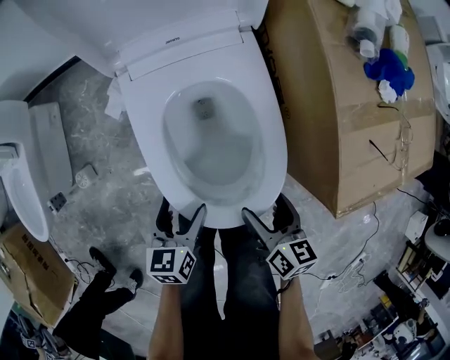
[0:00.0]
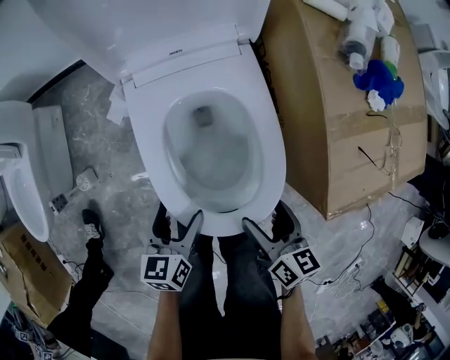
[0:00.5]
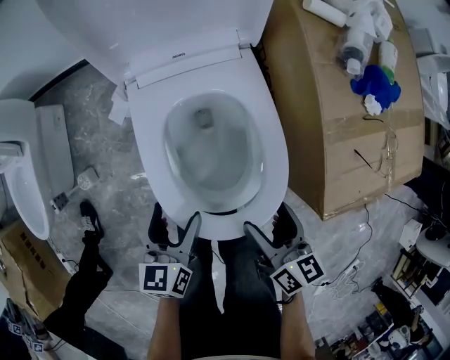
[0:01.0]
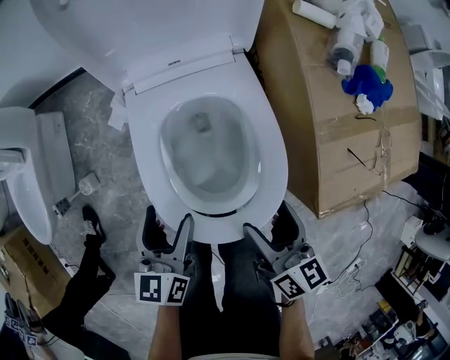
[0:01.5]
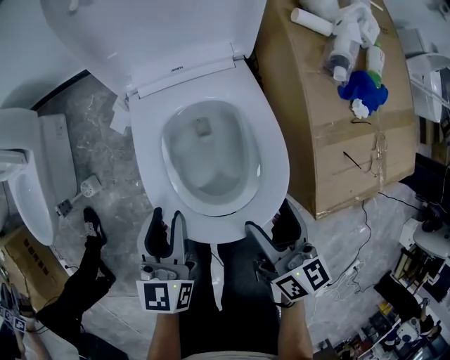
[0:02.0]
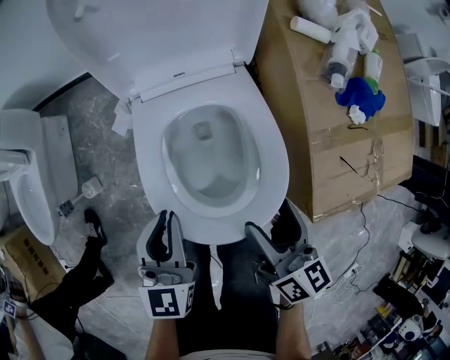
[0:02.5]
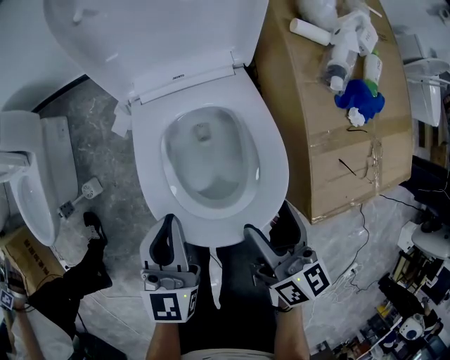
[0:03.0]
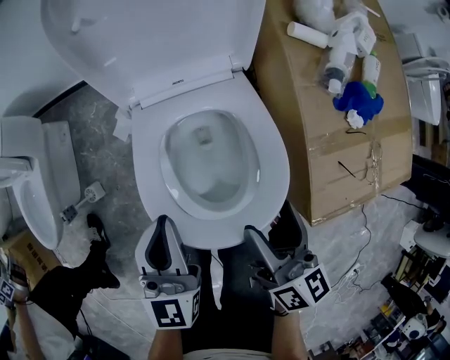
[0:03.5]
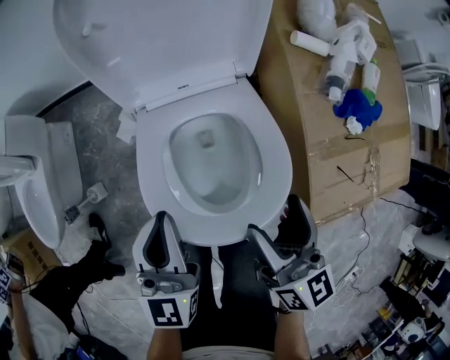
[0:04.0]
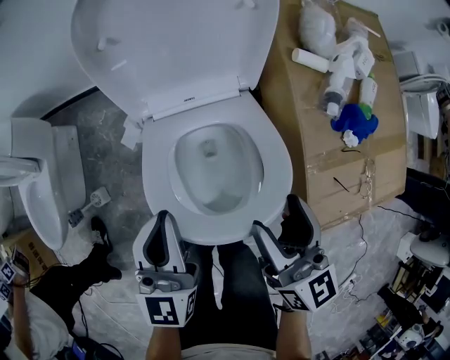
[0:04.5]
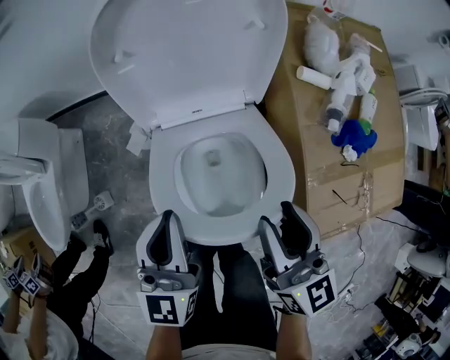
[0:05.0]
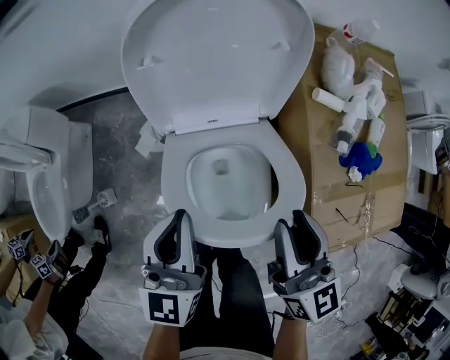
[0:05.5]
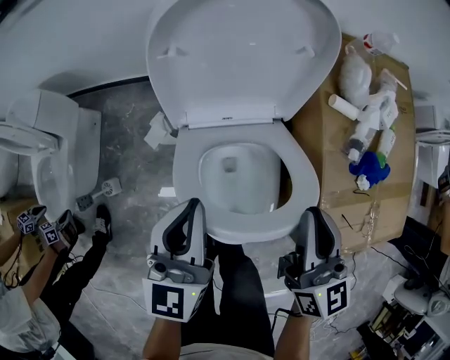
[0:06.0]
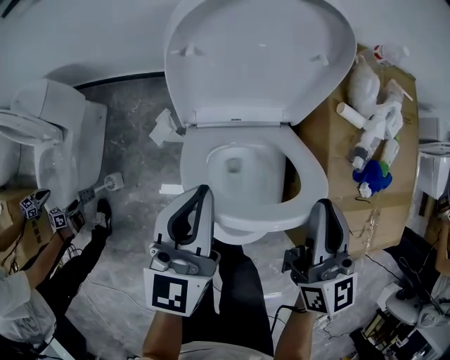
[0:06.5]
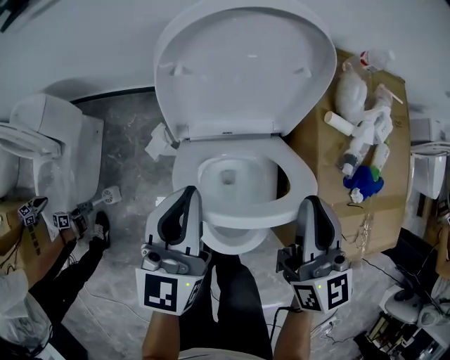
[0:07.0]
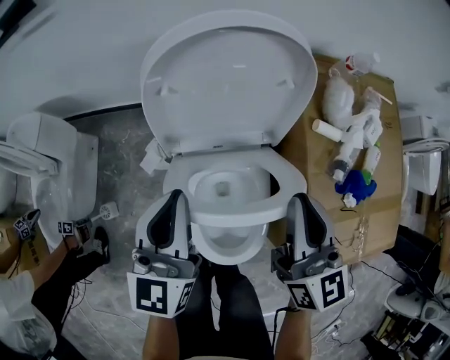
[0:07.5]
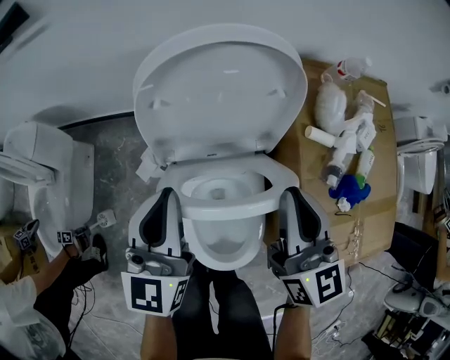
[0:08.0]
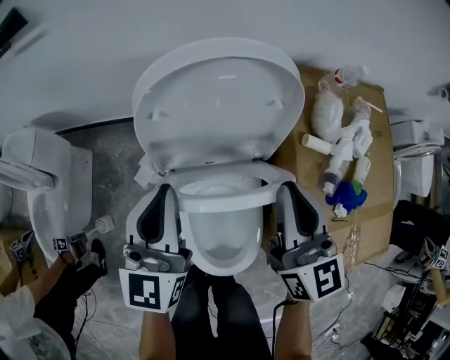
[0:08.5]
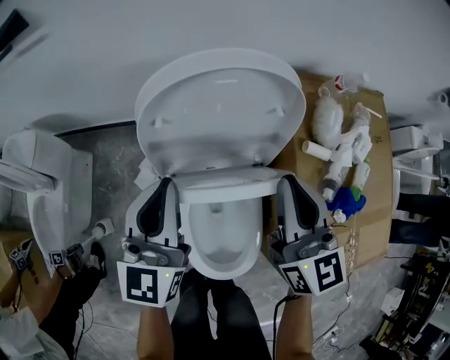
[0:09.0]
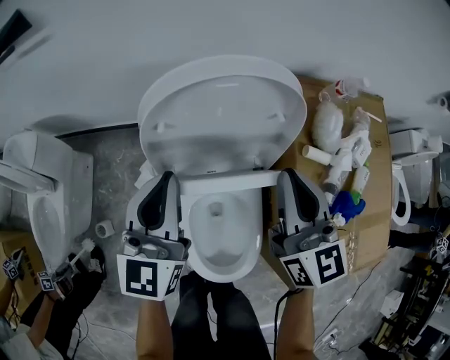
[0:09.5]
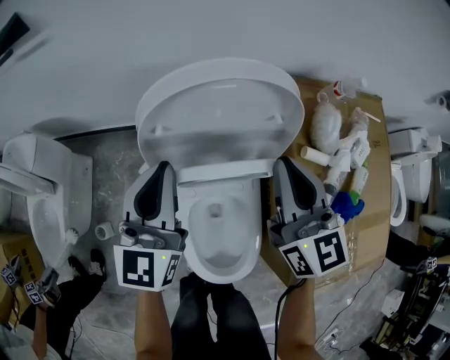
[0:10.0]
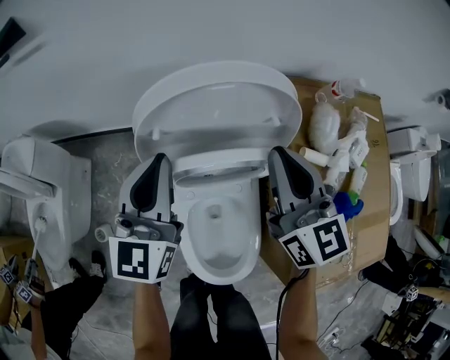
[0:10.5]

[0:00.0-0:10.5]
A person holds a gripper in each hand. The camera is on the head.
0.0 to 2.0 s: Both grippers travel together upward, approximately 15 cm. The left gripper turns by roughly 20 degrees, and closes up.
2.0 to 4.0 s: The grippers both shift upward and forward by about 10 cm. The left gripper closes its fingers.
4.0 to 6.5 s: The two grippers go some 15 cm forward and upward. The right gripper closes up.
6.5 to 8.5 s: The grippers both shift forward by roughly 10 cm.
8.5 to 10.5 s: The two grippers go about 10 cm forward.

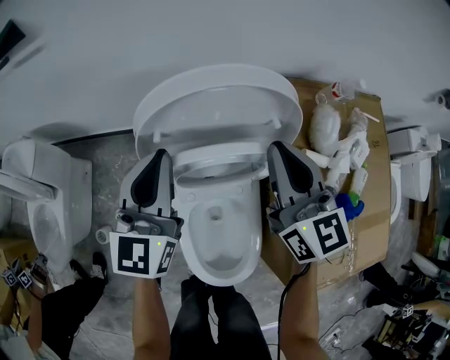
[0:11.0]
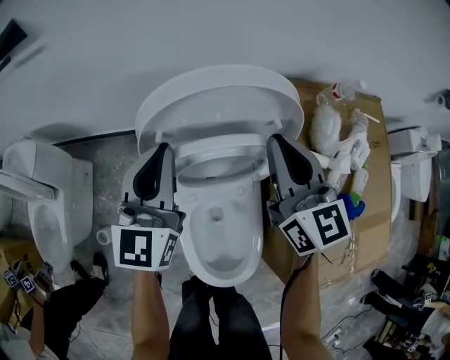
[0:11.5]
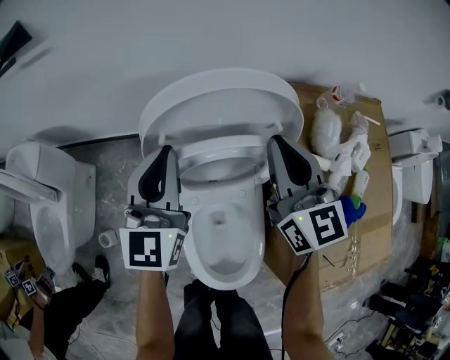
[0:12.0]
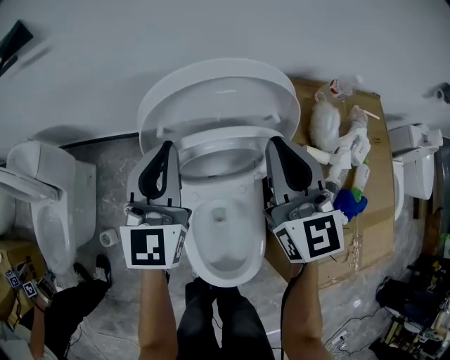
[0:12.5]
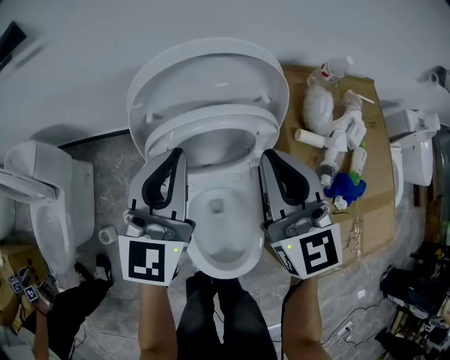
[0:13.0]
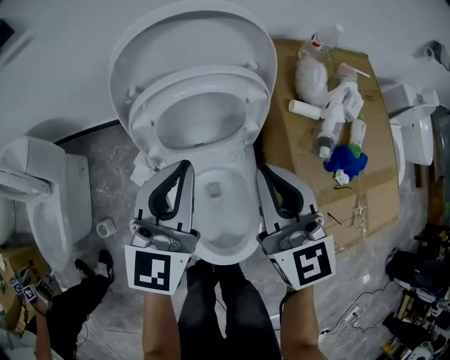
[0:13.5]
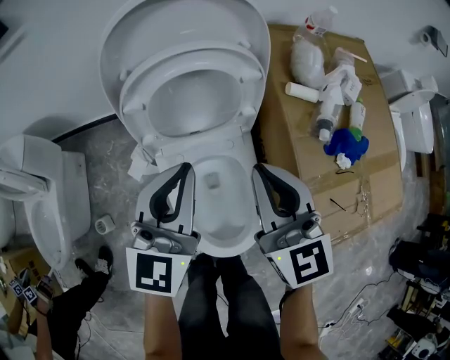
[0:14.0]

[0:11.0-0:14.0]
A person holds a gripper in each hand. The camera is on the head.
11.0 to 12.5 s: The grippers make only small movements.
12.5 to 14.0 s: The right gripper goes approximately 15 cm backward. Meanwhile the left gripper goes about 20 cm backward and to the right.

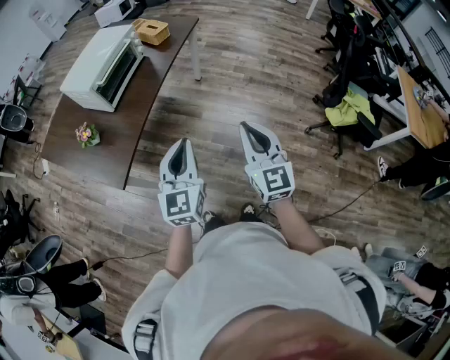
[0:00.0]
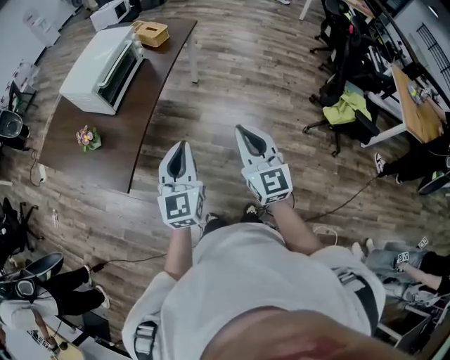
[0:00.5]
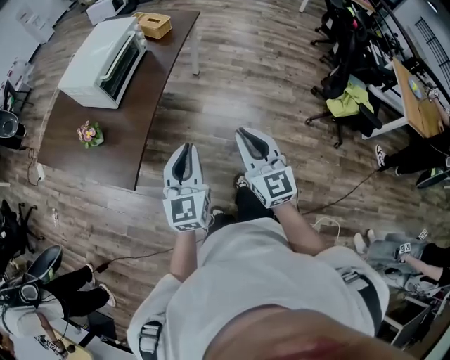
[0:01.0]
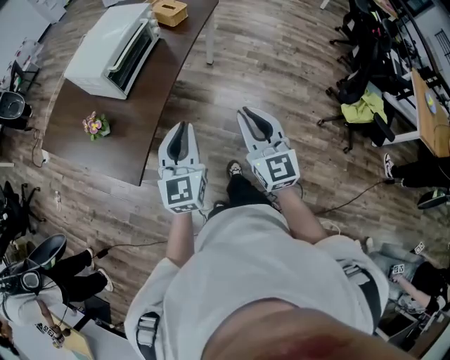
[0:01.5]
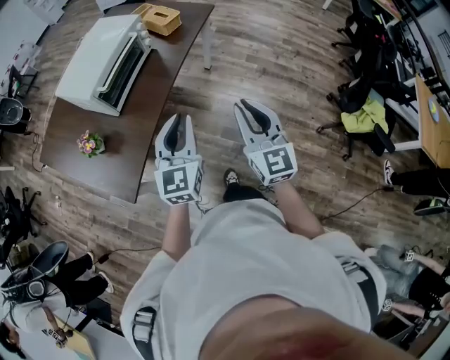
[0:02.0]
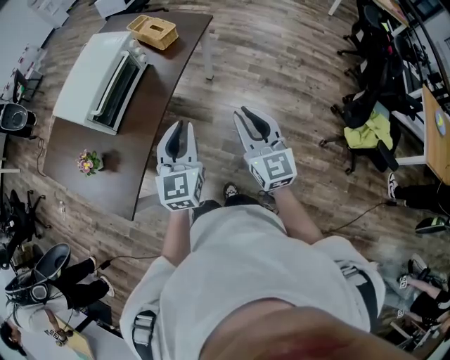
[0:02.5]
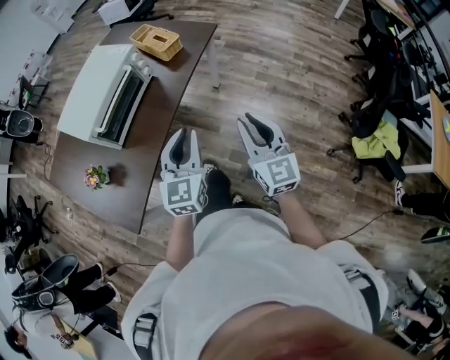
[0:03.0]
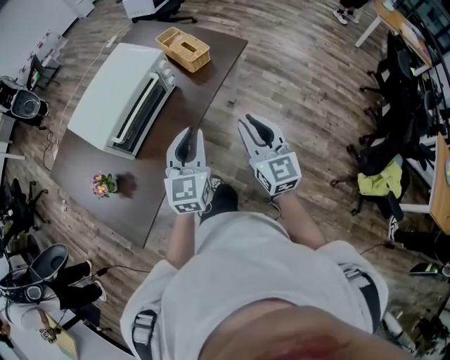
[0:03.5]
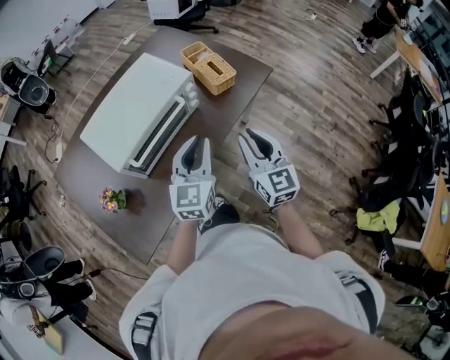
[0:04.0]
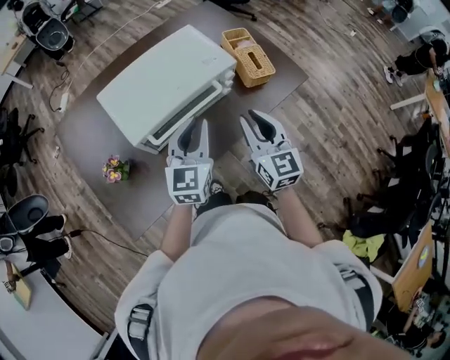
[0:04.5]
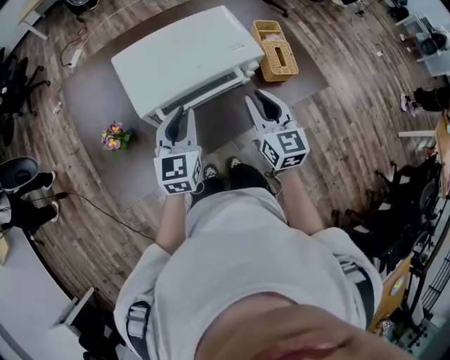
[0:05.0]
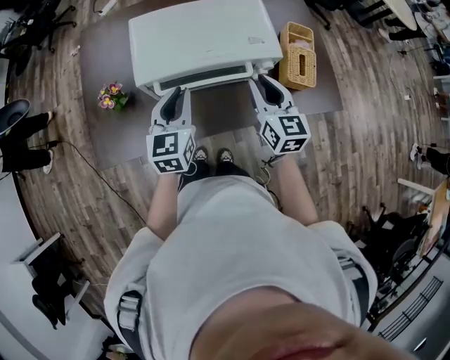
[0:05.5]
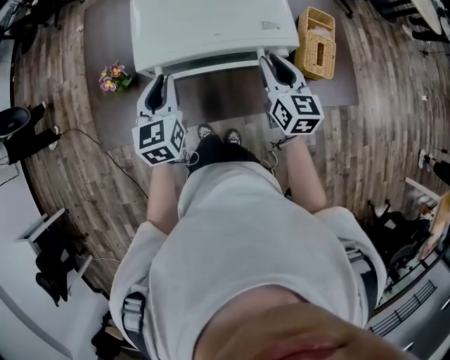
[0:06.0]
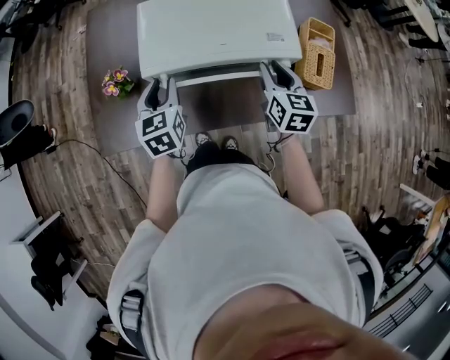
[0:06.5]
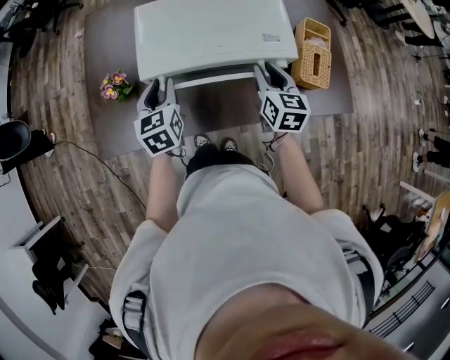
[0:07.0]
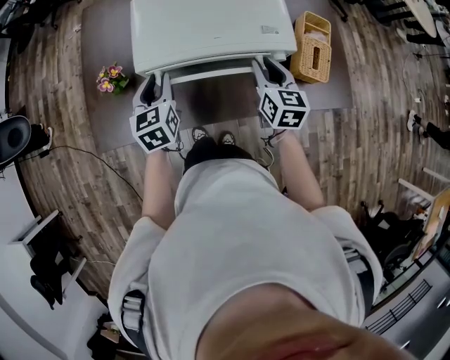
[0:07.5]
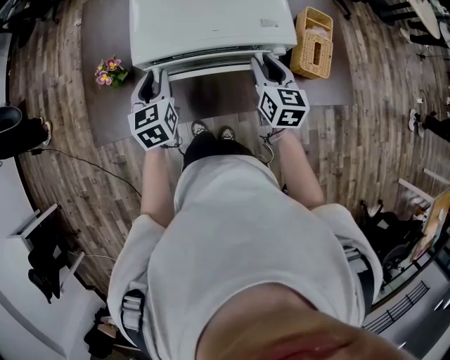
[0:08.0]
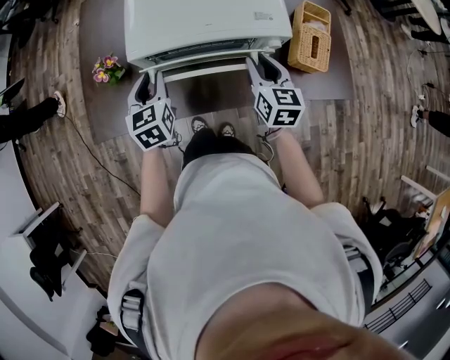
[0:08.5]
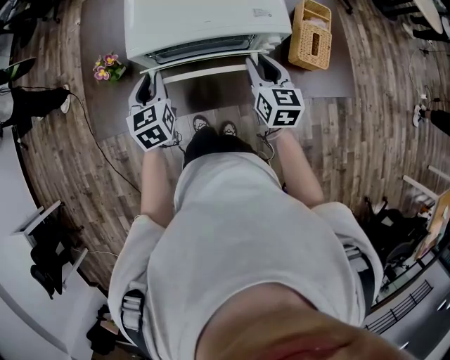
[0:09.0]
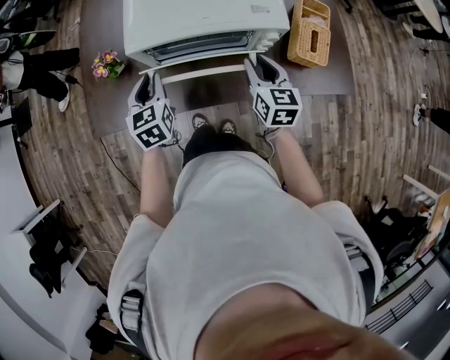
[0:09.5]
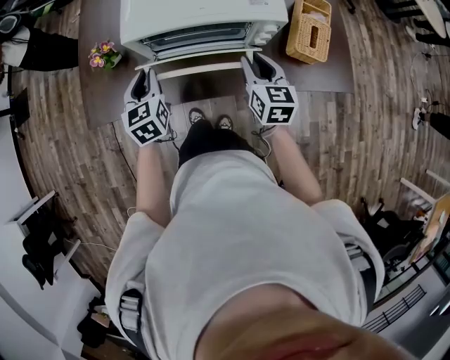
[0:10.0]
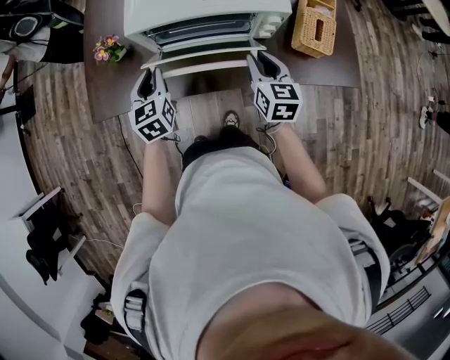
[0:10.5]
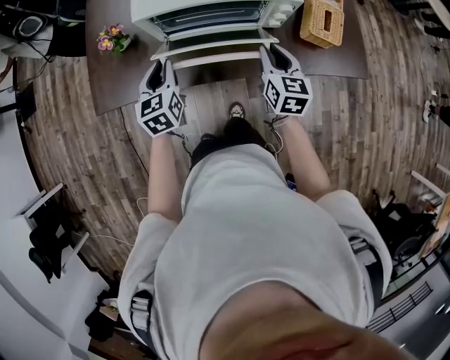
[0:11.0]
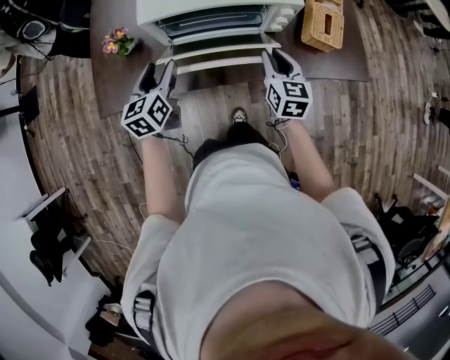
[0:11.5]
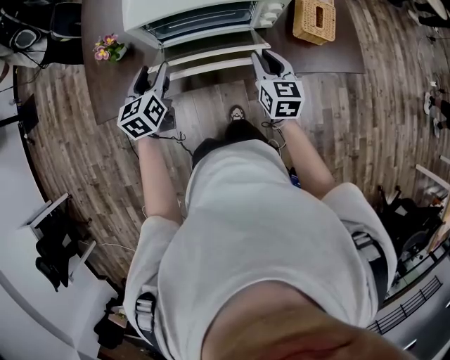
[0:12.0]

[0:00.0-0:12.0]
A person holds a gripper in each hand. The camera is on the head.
0.0 to 2.0 s: Both grippers move forward, approximately 20 cm.
2.0 to 4.0 s: The two grippers go approximately 35 cm forward.
4.0 to 6.0 s: The left gripper shifts by some 25 cm, and changes its angle by some 60 degrees, while the right gripper shifts by approximately 25 cm, and changes its angle by about 40 degrees.
6.0 to 8.0 s: The grippers move only a little.
8.0 to 10.0 s: The two grippers go about 5 cm backward.
10.0 to 12.0 s: The left gripper opens its fingers, while the right gripper changes place by roughly 5 cm.

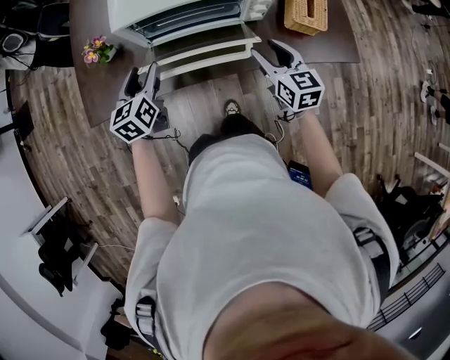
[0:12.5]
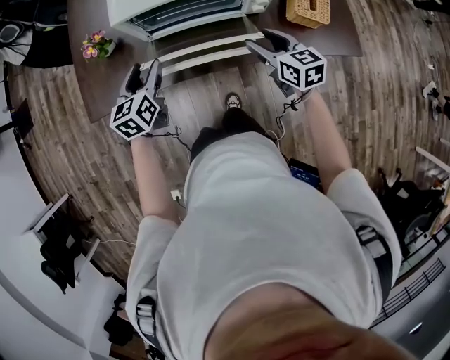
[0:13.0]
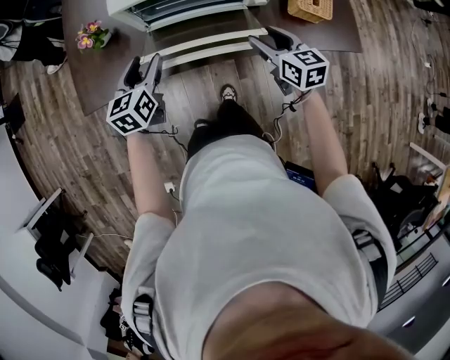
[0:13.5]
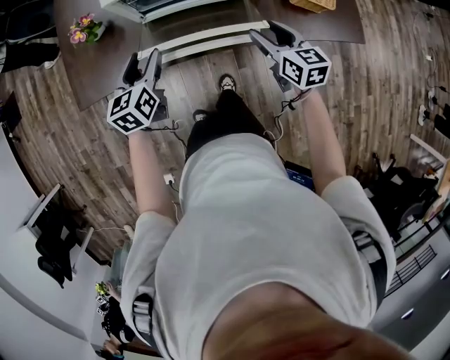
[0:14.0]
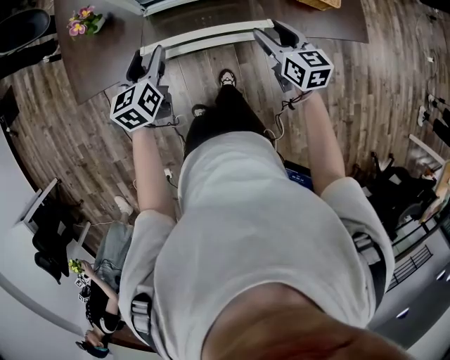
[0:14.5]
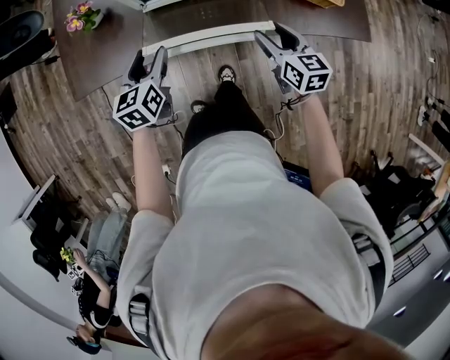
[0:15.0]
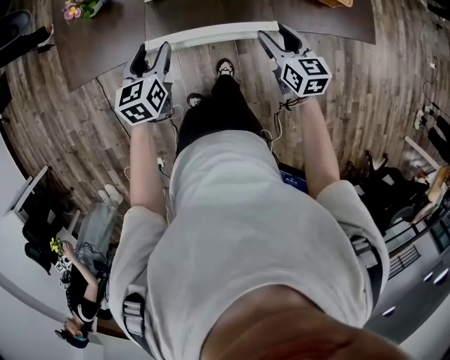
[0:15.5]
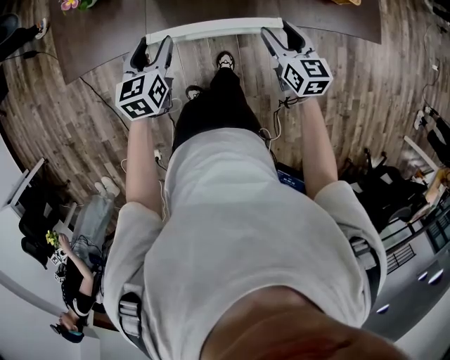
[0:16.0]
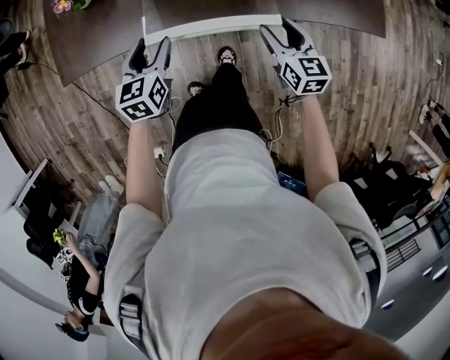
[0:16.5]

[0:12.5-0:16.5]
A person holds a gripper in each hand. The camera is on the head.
12.5 to 14.5 s: The left gripper shifts by roughly 5 cm, while the right gripper shifts by some 5 cm.
14.5 to 16.5 s: The two grippers go approximately 5 cm downward.
